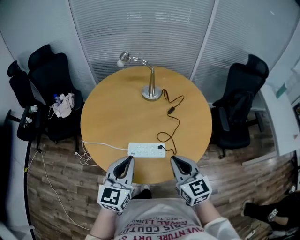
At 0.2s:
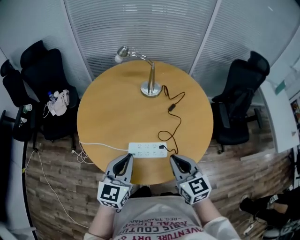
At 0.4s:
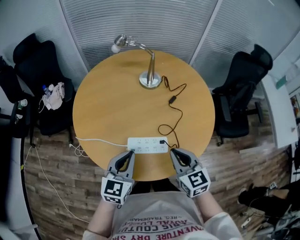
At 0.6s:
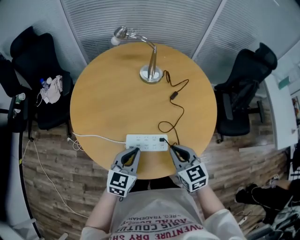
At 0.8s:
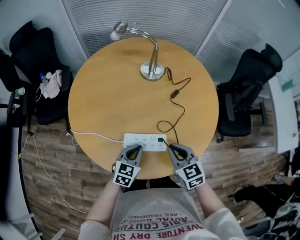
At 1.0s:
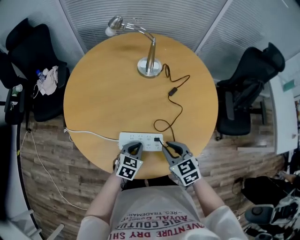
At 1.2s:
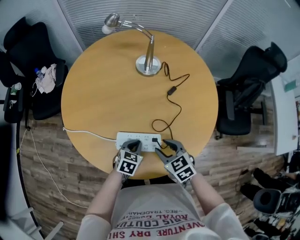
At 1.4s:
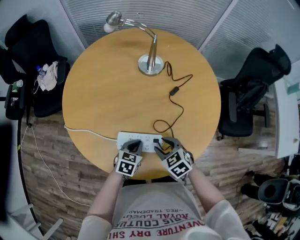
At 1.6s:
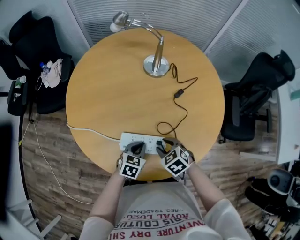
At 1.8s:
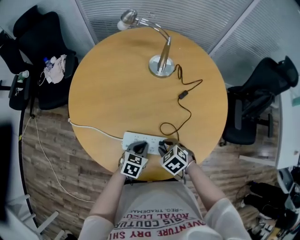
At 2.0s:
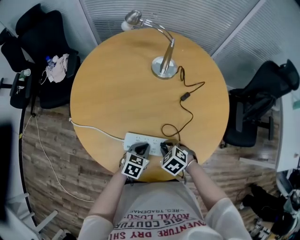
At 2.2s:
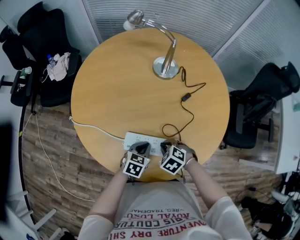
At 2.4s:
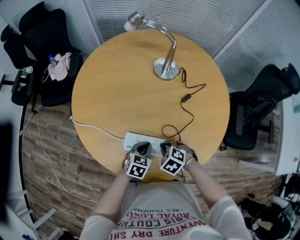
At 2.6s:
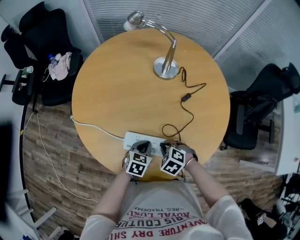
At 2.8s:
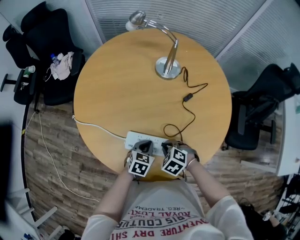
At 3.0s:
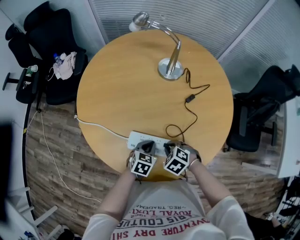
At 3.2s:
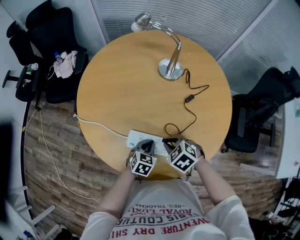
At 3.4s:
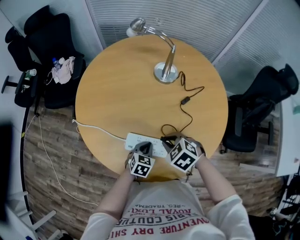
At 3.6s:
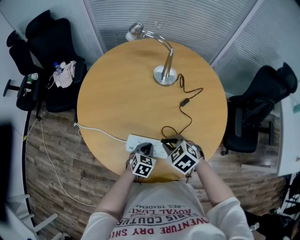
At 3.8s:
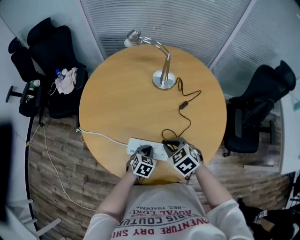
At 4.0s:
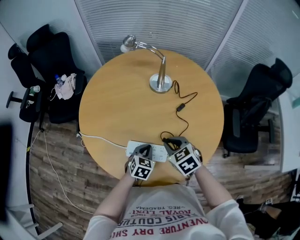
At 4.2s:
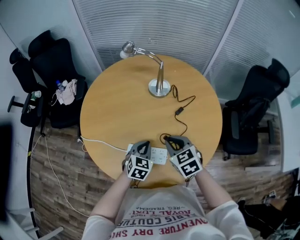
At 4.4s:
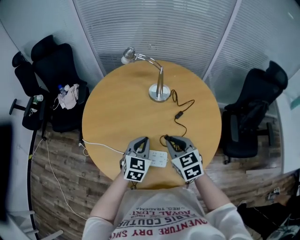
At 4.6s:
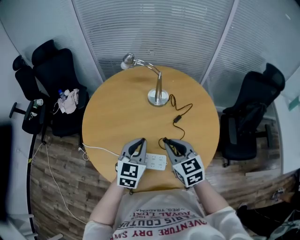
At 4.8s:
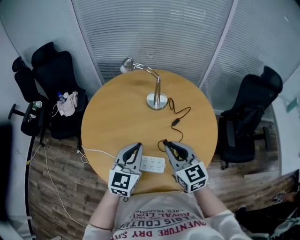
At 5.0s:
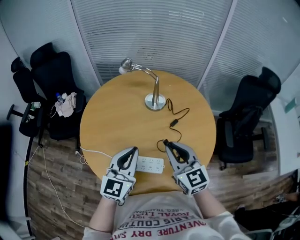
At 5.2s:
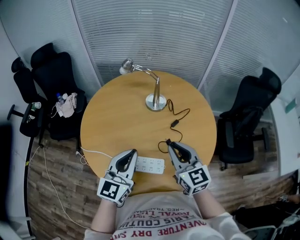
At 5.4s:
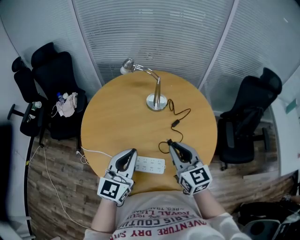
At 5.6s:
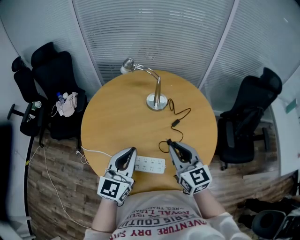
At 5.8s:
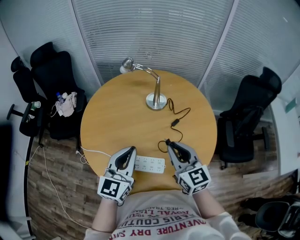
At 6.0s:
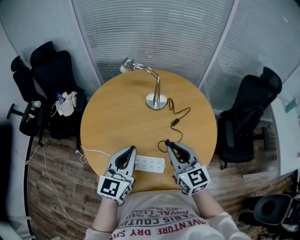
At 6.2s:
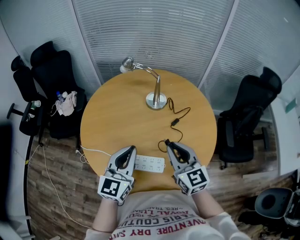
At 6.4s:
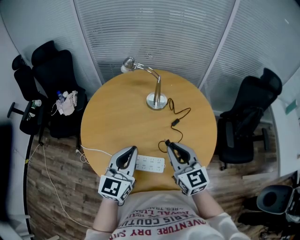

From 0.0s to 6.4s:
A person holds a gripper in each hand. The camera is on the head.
From 0.0s to 1.6s: Both grippers travel together downward, roughly 25 cm. The right gripper points its fingers approximately 40 degrees further downward, and opens its fingers, while the left gripper tilts its fingers roughly 40 degrees downward.
From 1.6s to 3.2s: The right gripper closes up.
From 3.2s to 4.8s: The two grippers go some 25 cm upward. The right gripper tips its fingers upward by approximately 50 degrees; the left gripper angles its fingers upward, by about 40 degrees.
From 4.8s to 6.4s: There are only small adjustments of the grippers.

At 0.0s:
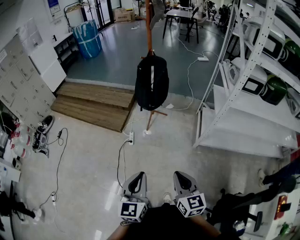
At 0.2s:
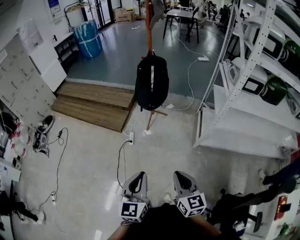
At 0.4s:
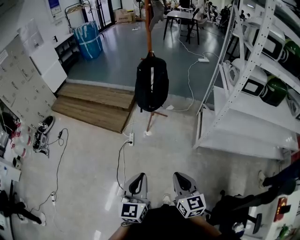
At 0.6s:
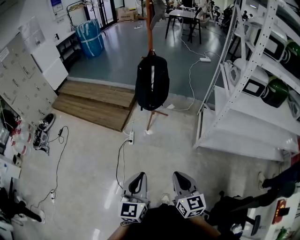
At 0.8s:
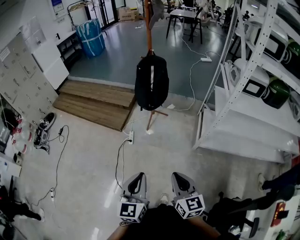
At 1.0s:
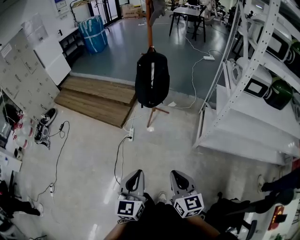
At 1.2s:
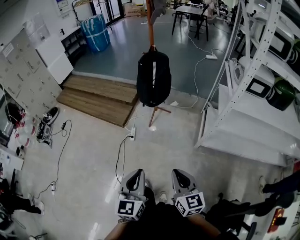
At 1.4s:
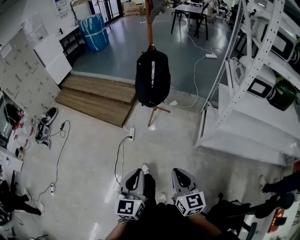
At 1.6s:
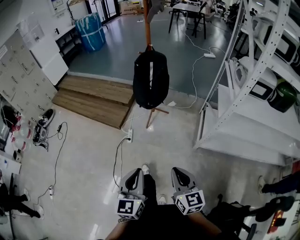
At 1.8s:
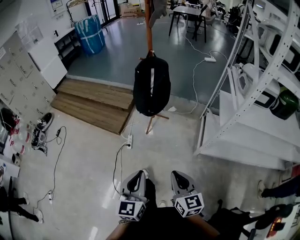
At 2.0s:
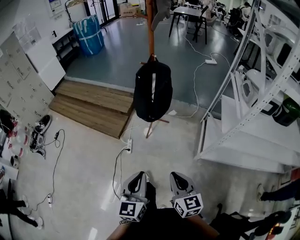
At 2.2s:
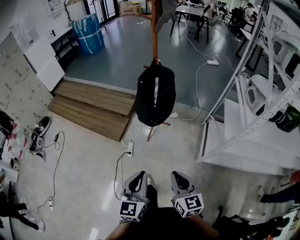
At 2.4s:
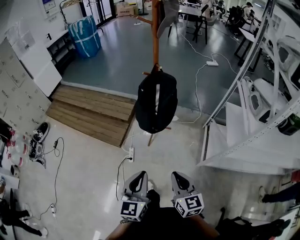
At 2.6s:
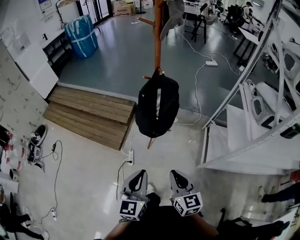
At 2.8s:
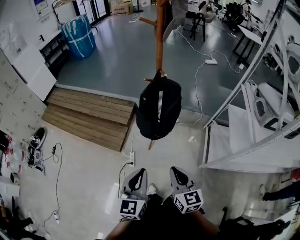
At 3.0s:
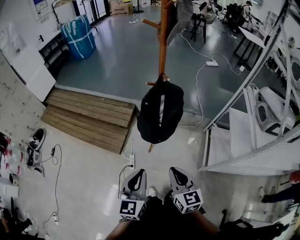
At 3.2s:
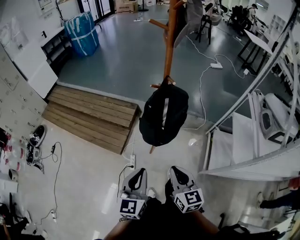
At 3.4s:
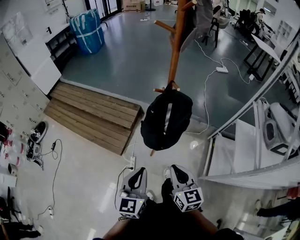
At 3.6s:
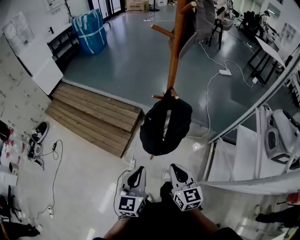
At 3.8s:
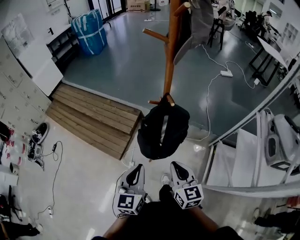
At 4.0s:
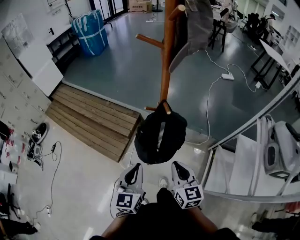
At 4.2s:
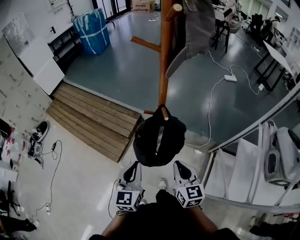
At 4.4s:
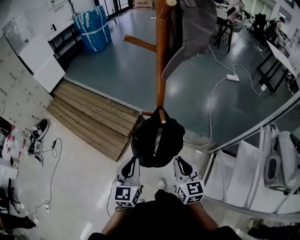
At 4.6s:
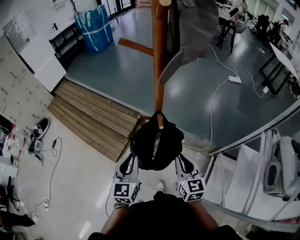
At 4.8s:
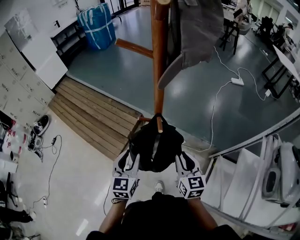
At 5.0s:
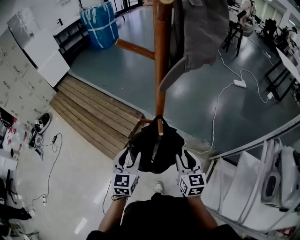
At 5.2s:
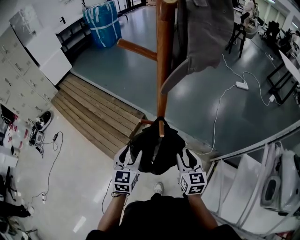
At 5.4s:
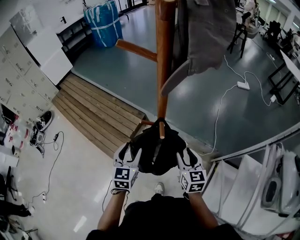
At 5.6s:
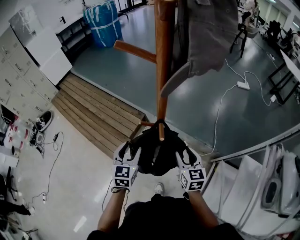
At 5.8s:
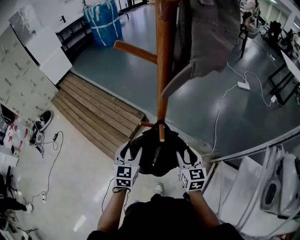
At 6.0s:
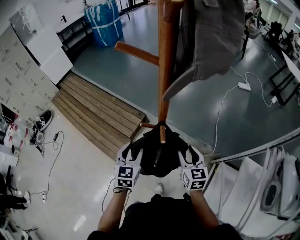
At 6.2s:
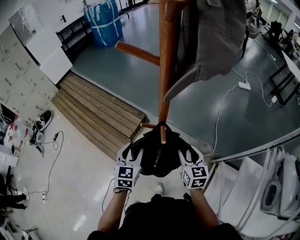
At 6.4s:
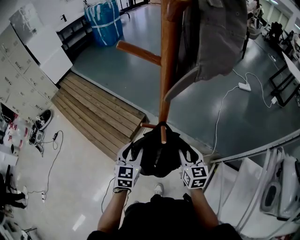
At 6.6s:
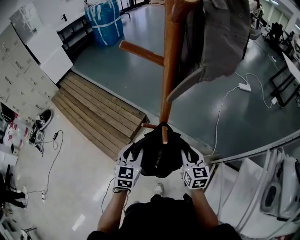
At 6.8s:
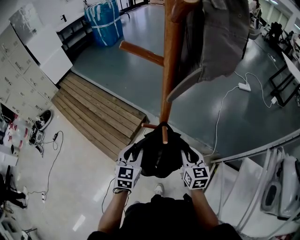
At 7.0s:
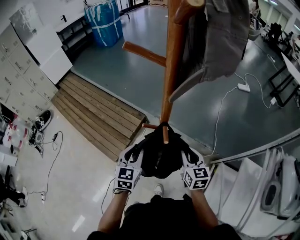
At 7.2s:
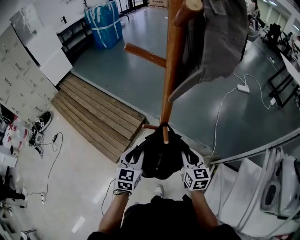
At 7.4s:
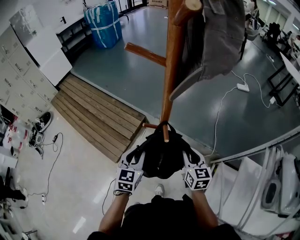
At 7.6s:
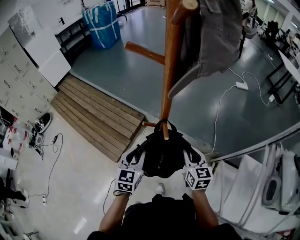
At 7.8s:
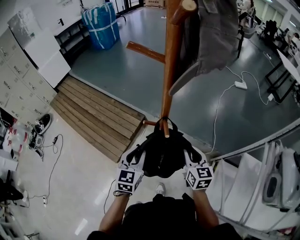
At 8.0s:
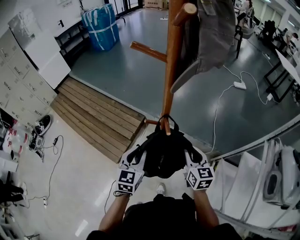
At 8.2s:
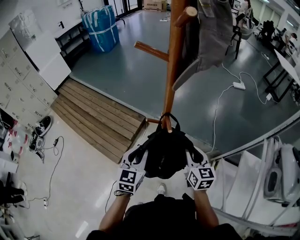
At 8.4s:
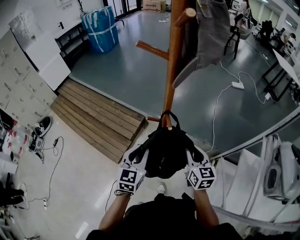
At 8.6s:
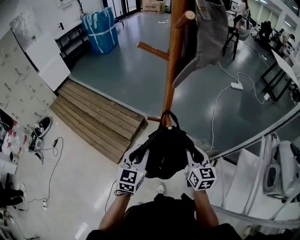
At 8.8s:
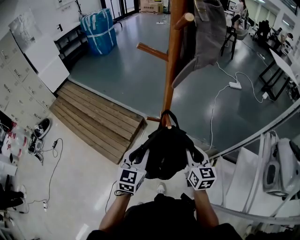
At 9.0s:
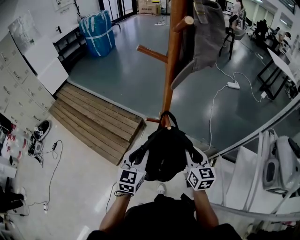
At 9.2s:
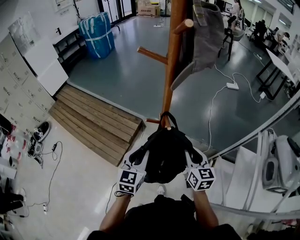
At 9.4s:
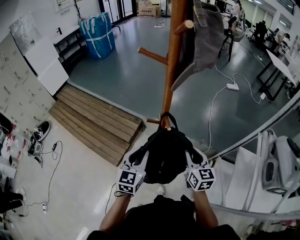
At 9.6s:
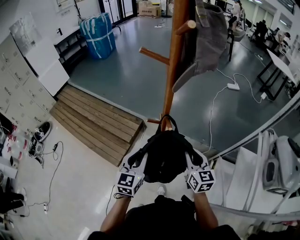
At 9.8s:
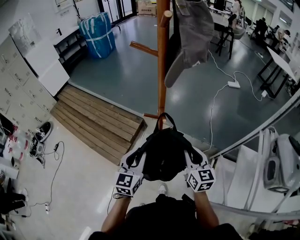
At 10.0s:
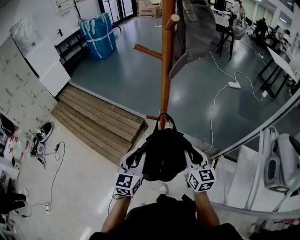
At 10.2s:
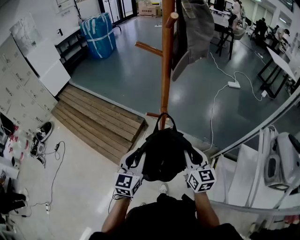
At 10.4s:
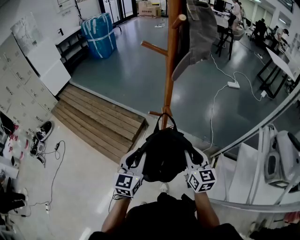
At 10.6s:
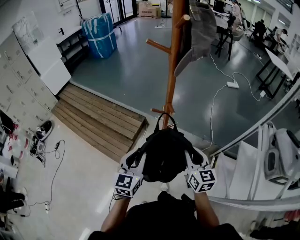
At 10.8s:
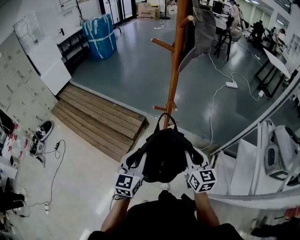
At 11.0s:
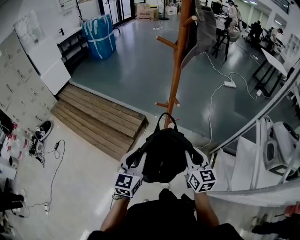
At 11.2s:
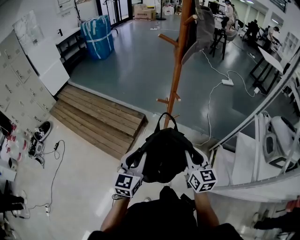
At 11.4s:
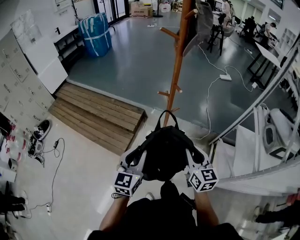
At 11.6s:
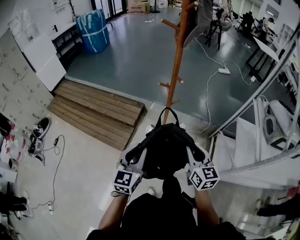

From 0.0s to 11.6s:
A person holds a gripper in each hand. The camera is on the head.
From 0.0s to 1.4s: Both grippers move to the right, approximately 5 cm.
From 1.4s to 2.8s: The two grippers go about 40 cm forward.
From 2.8s to 4.4s: Both grippers move forward, some 30 cm.
From 4.4s to 5.8s: Both grippers travel together forward and downward, approximately 15 cm. The right gripper opens. The left gripper opens.
From 5.8s to 7.2s: The left gripper closes up.
From 7.2s to 8.8s: The right gripper travels backward and upward by approximately 10 cm, while the left gripper goes approximately 10 cm upward and backward.
From 8.8s to 10.2s: There are only small adjustments of the grippers.
From 10.2s to 11.6s: The right gripper heads backward, covering about 20 cm; the left gripper heads backward and to the left, covering approximately 20 cm.

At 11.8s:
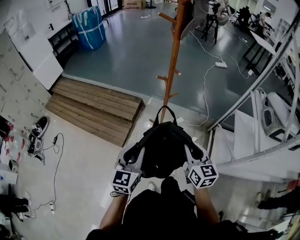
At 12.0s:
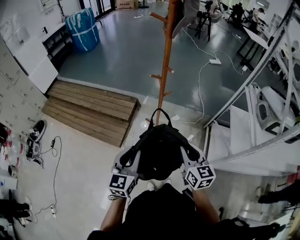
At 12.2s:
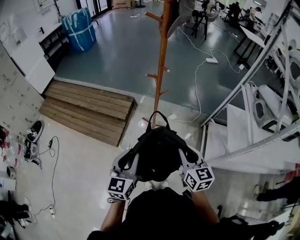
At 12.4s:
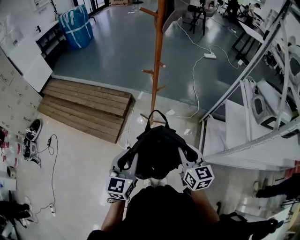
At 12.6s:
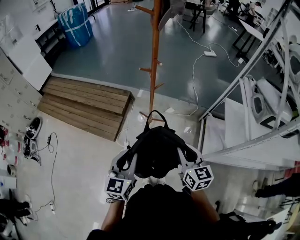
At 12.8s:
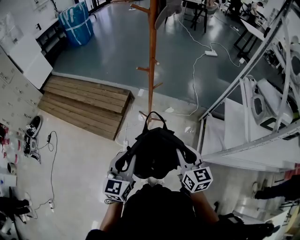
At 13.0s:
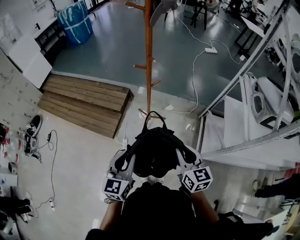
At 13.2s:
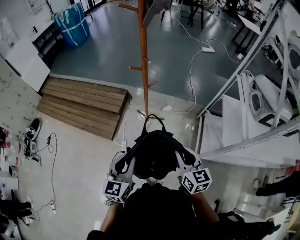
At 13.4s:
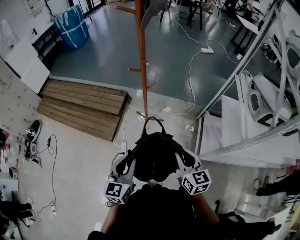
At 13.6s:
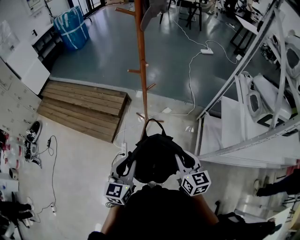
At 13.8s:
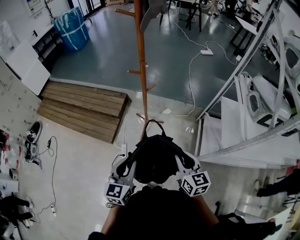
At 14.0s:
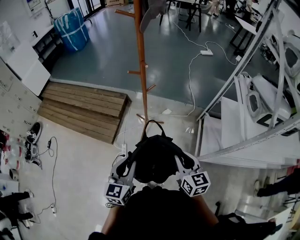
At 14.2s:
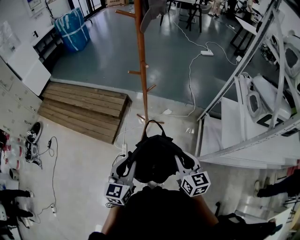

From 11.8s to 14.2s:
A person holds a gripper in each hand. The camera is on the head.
From 11.8s to 13.0s: The grippers both shift to the right and backward by roughly 10 cm.
From 13.0s to 14.2s: The grippers move only a little.

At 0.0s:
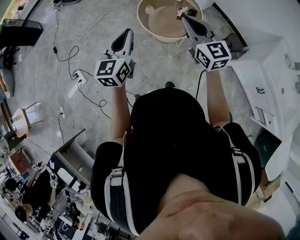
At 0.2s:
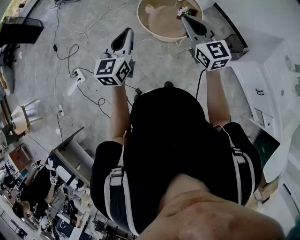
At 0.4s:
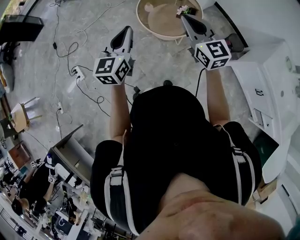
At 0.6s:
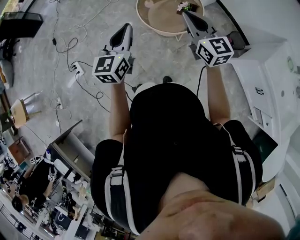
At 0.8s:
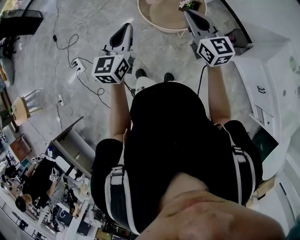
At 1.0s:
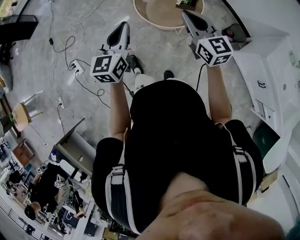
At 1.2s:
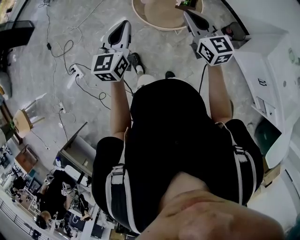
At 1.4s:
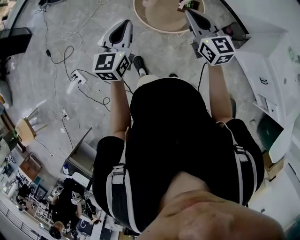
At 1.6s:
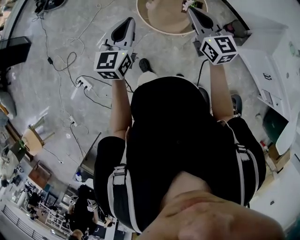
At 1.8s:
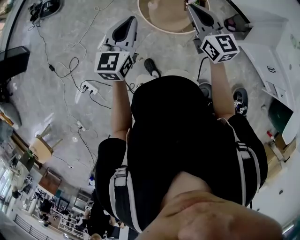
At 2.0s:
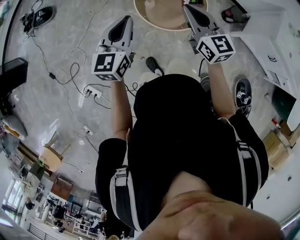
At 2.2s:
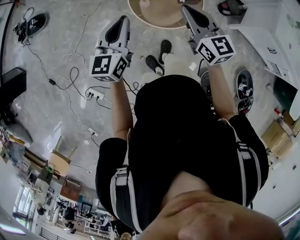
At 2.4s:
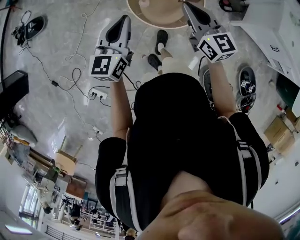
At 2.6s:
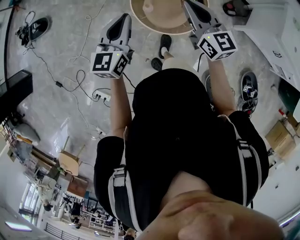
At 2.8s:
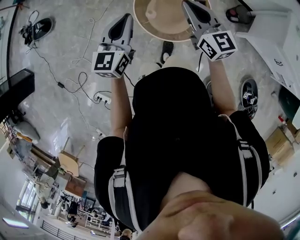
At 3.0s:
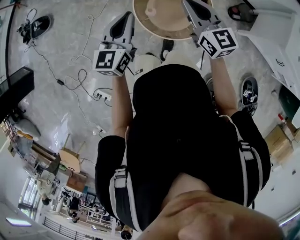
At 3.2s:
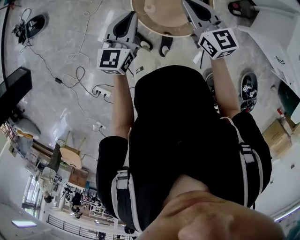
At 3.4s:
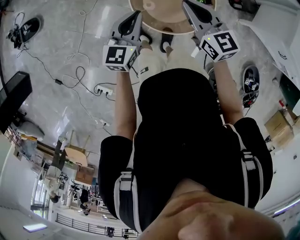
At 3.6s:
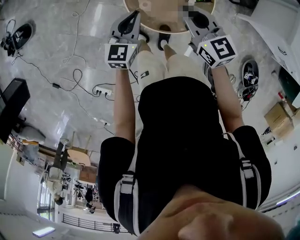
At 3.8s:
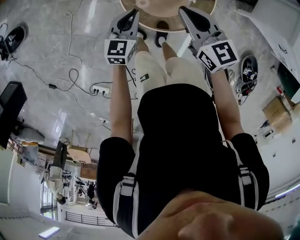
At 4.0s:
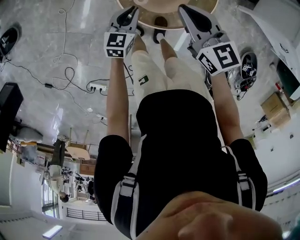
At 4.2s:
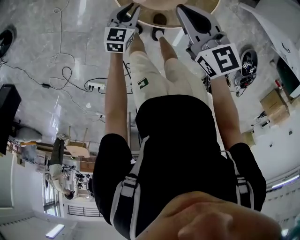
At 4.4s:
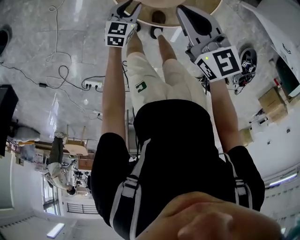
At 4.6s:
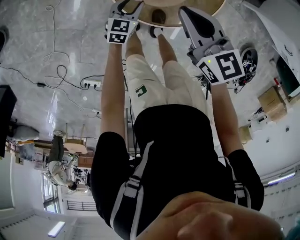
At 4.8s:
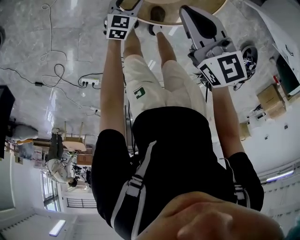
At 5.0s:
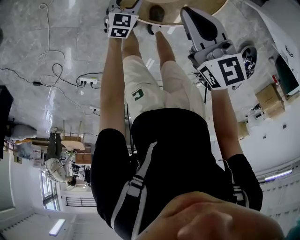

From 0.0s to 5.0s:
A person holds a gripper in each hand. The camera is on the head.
From 0.0s to 1.6s: The left gripper is displaced forward by approximately 15 cm, while the right gripper is displaced forward and to the left by some 15 cm.
From 1.6s to 3.4s: Both grippers travel together forward and downward, some 30 cm. The left gripper turns by approximately 20 degrees.
From 3.4s to 5.0s: The left gripper is displaced downward by some 40 cm, turns by about 30 degrees, and opens up, while the right gripper shifts approximately 20 cm downward.
